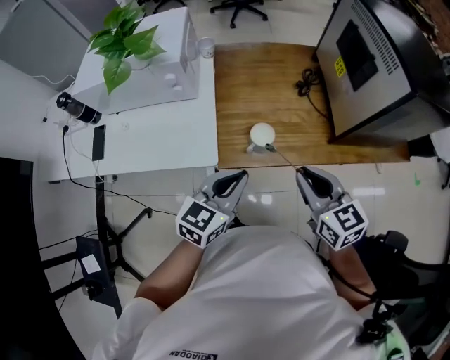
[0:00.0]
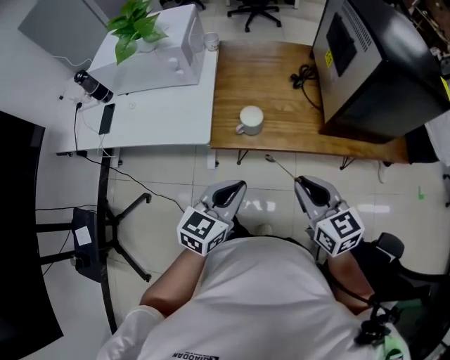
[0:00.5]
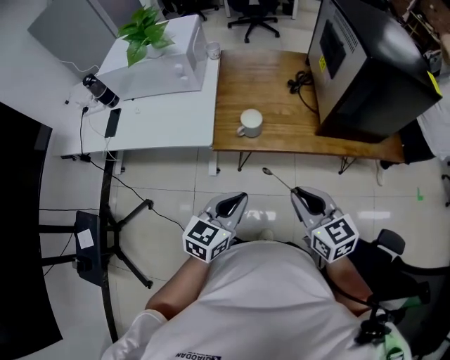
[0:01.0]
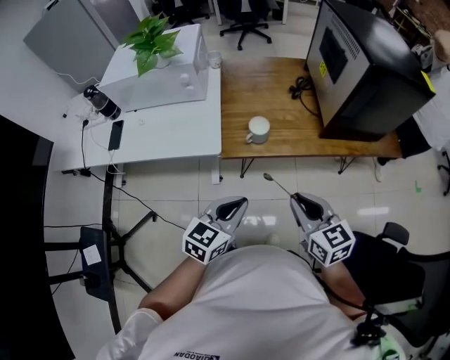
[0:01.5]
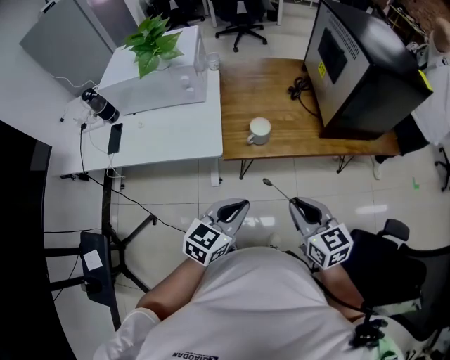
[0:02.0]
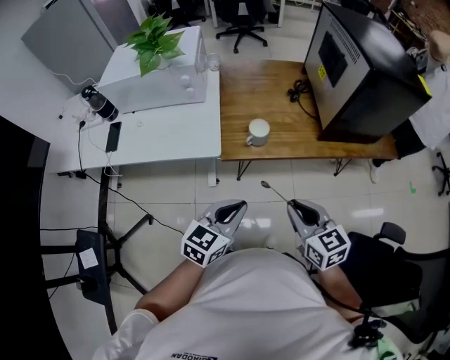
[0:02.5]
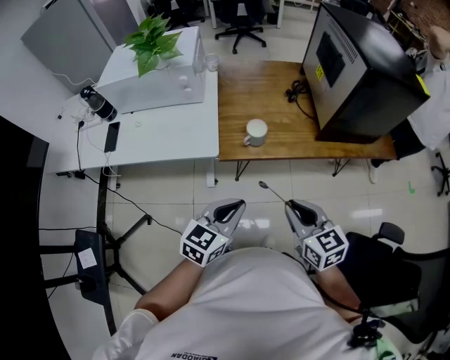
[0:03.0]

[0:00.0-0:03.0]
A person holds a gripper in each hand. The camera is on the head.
0:00.0 to 0:01.5: Both grippers travel together backward, about 15 cm.
0:01.5 to 0:03.0: The grippers move only a little.

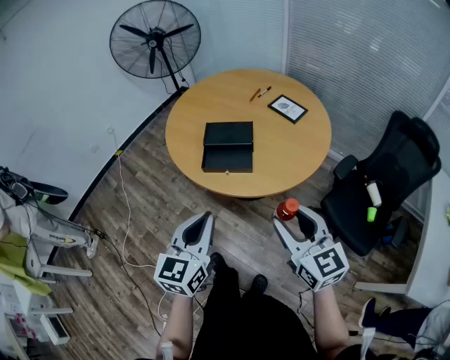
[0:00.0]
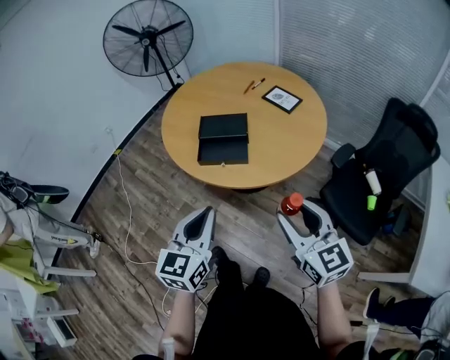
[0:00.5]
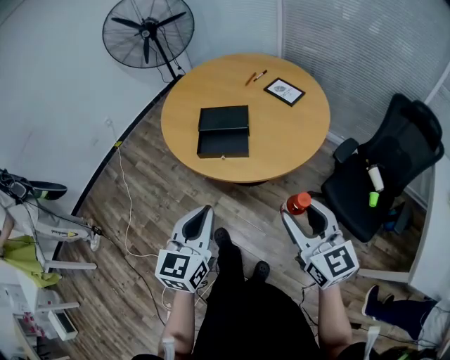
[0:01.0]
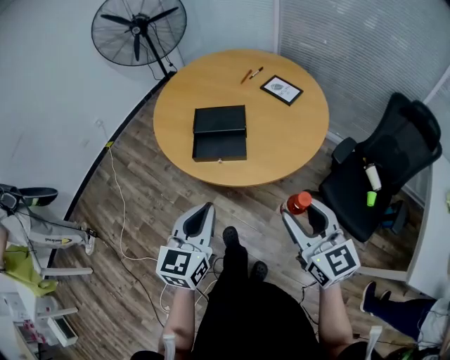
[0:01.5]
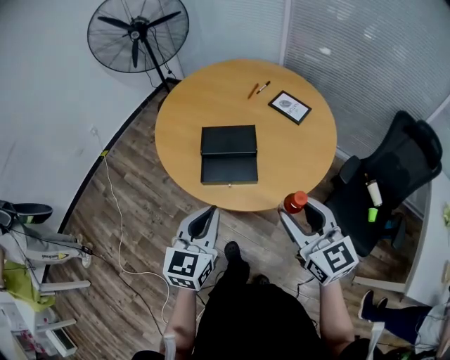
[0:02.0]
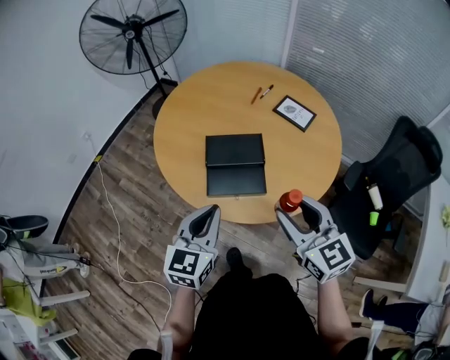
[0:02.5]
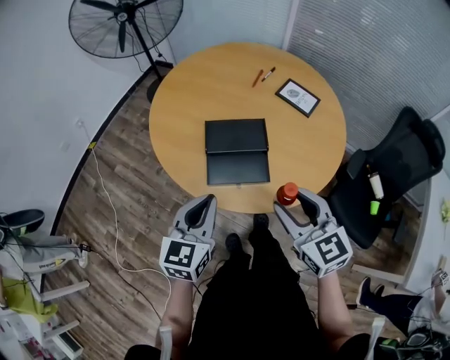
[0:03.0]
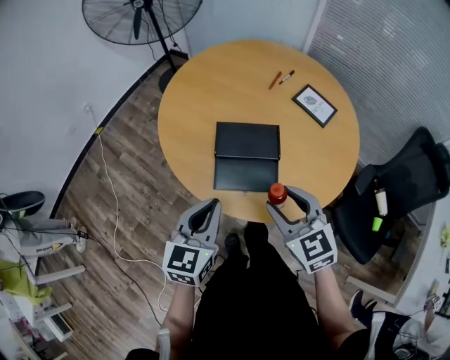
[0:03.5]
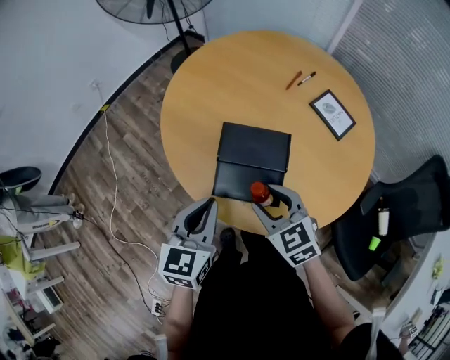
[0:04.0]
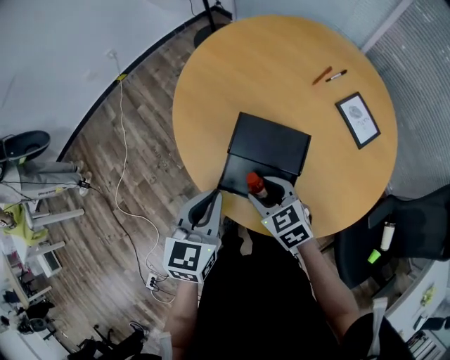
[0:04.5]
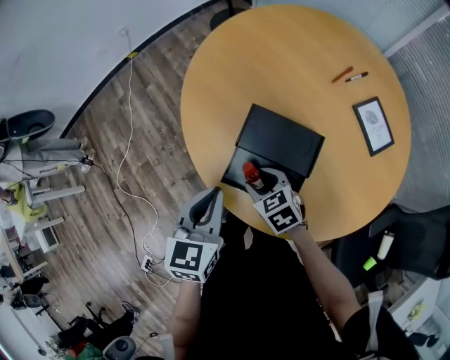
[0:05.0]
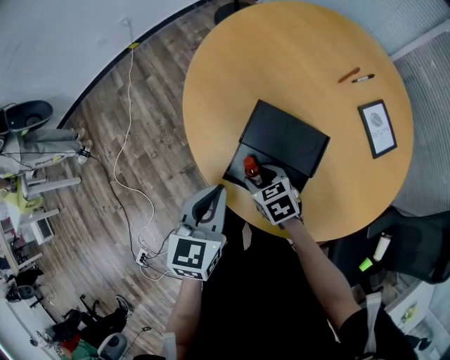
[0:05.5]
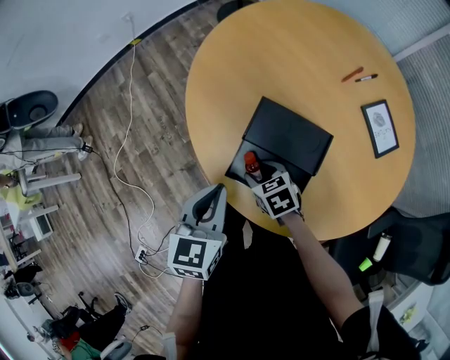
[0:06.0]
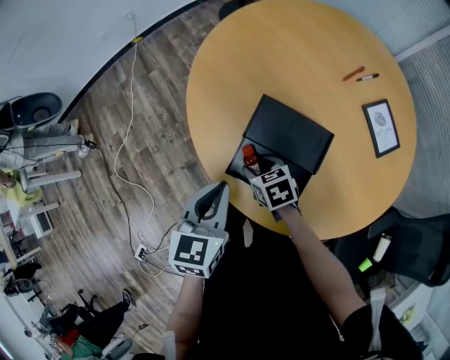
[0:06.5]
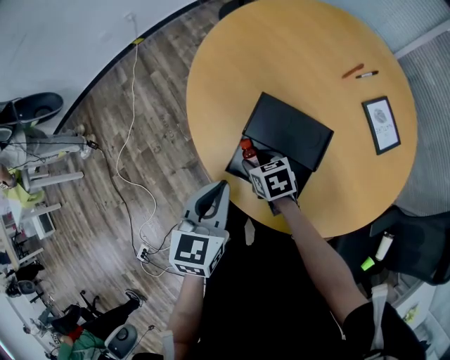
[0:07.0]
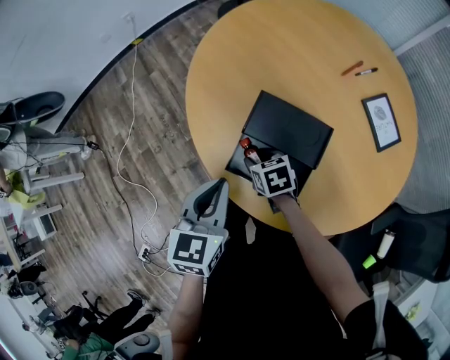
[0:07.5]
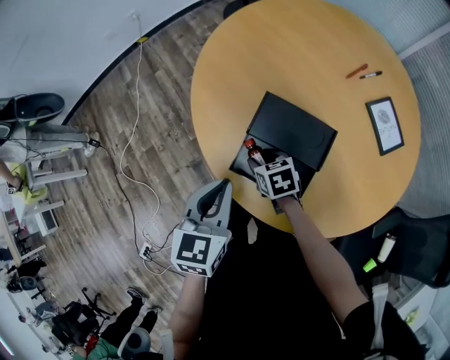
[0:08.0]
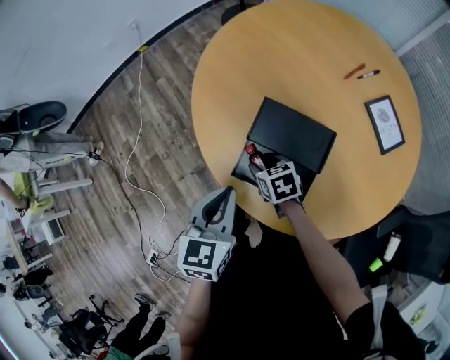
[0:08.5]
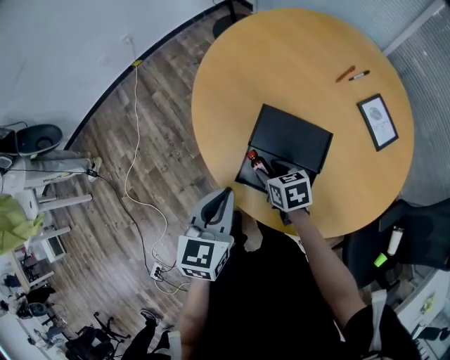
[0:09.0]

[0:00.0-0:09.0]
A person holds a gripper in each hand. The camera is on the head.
0:00.0 to 0:02.0: The two grippers go about 15 cm forward.
0:02.0 to 0:04.5: The right gripper moves roughly 35 cm, and points its fingers roughly 30 degrees further downward. The left gripper ends up about 20 cm from where it was, and rotates roughly 20 degrees.
0:04.5 to 0:07.0: The right gripper is displaced downward and forward by about 10 cm, and swivels about 20 degrees.
0:07.0 to 0:09.0: The grippers make only small movements.

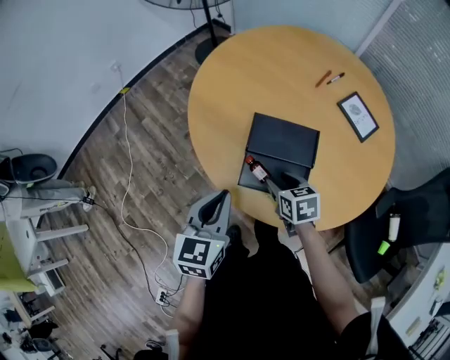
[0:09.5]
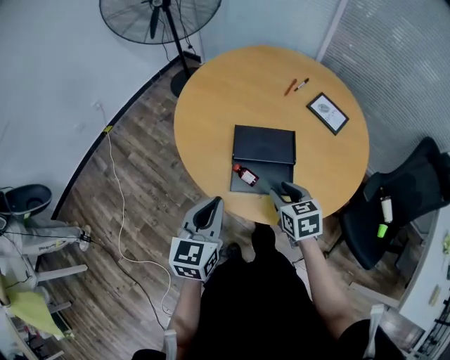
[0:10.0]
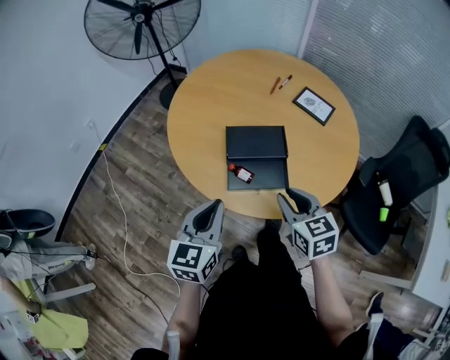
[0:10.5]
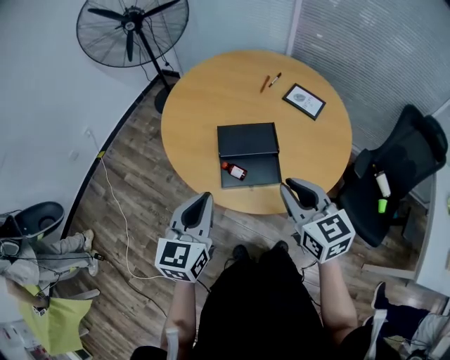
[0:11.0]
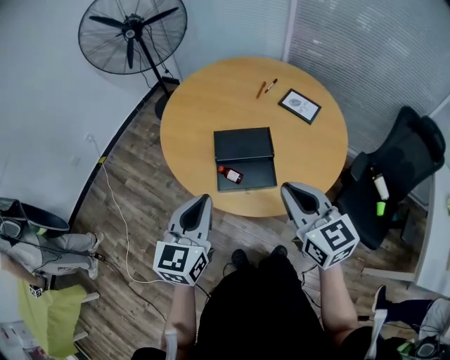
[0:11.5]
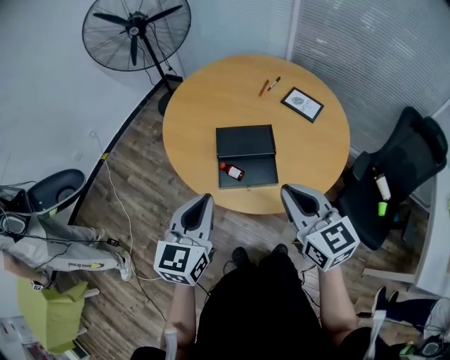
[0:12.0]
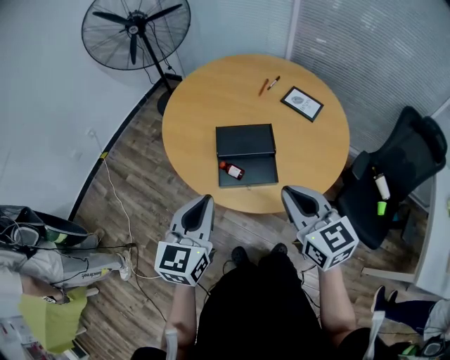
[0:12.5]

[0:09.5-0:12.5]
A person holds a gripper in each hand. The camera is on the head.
0:09.5 to 0:11.0: The right gripper is displaced upward and backward by roughly 25 cm, swivels approximately 30 degrees, and closes. Meanwhile the left gripper travels upward and backward by about 10 cm.
0:11.0 to 0:12.5: The grippers stay close to where they were, moving slightly.

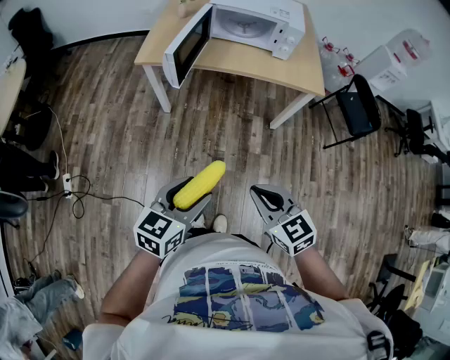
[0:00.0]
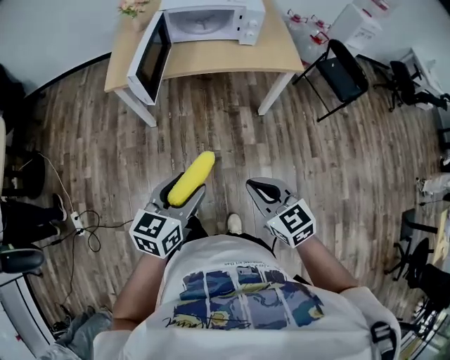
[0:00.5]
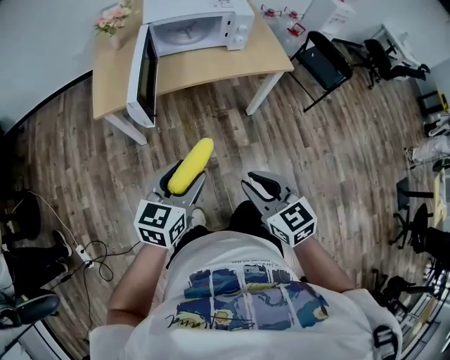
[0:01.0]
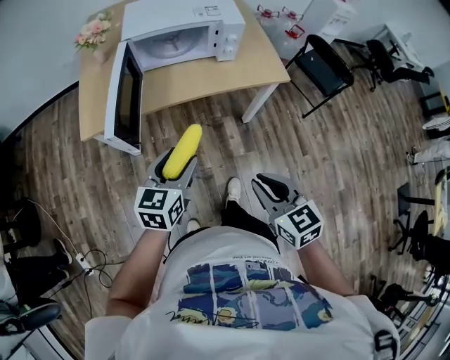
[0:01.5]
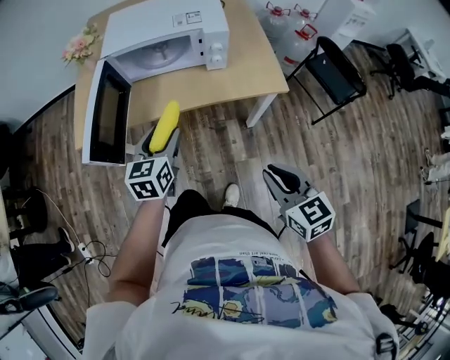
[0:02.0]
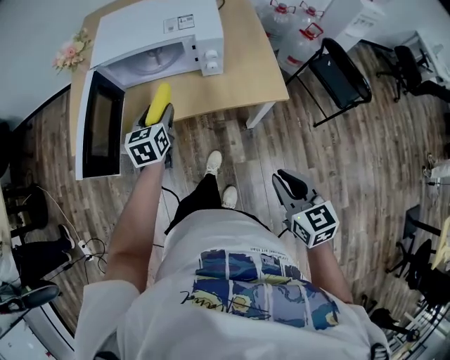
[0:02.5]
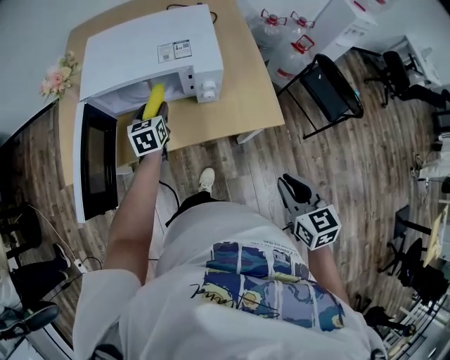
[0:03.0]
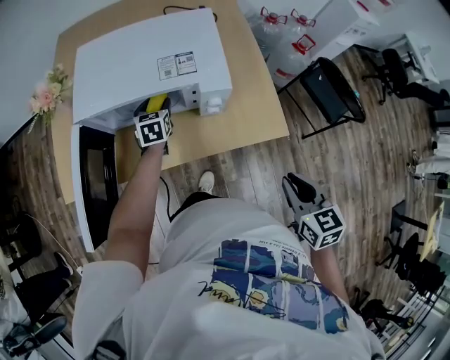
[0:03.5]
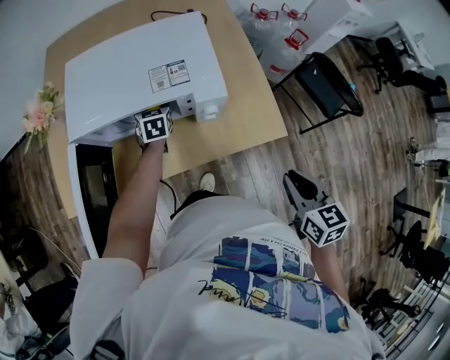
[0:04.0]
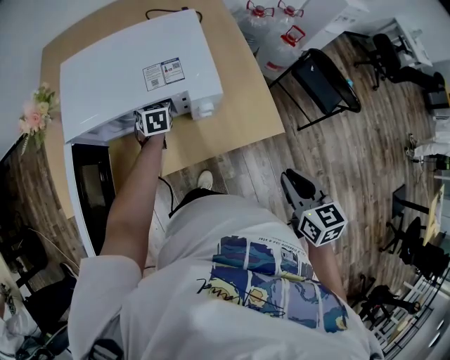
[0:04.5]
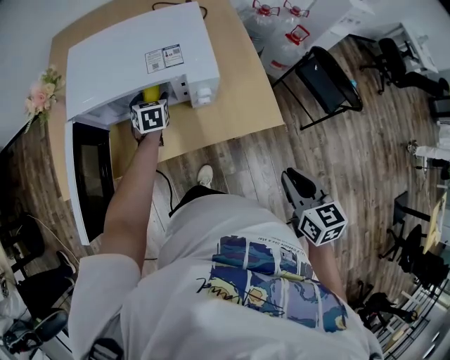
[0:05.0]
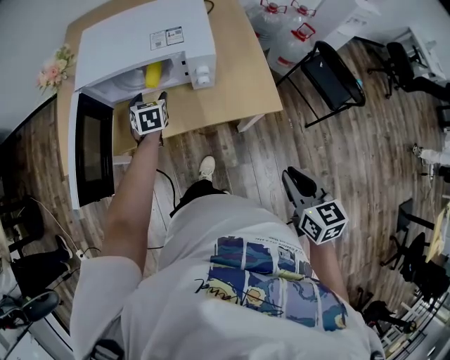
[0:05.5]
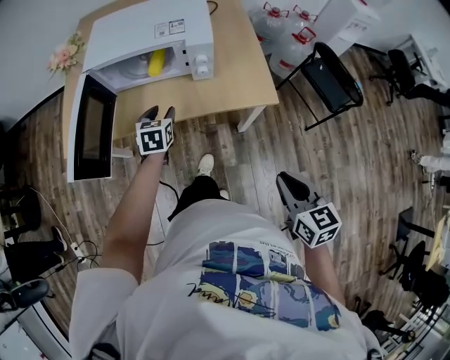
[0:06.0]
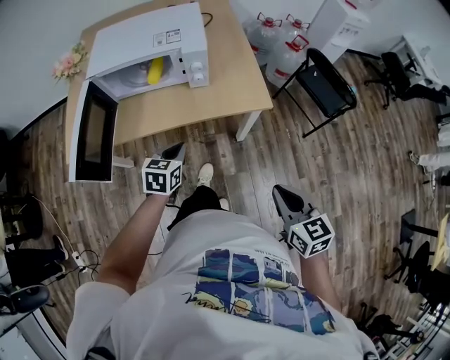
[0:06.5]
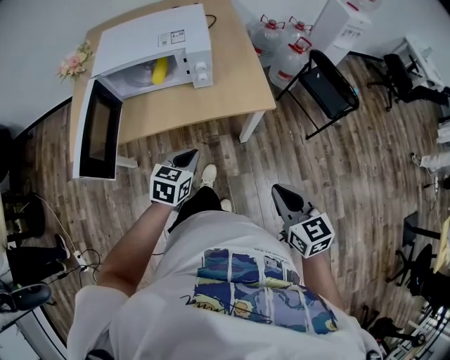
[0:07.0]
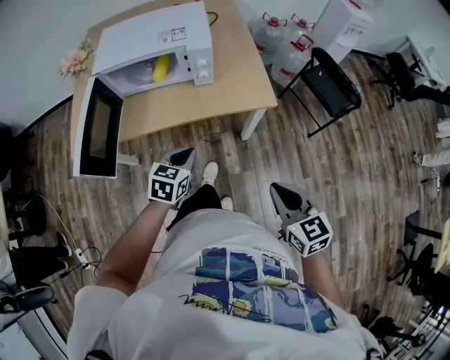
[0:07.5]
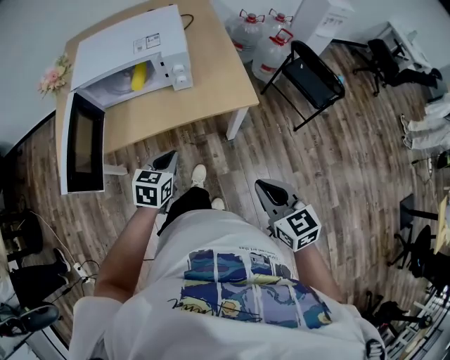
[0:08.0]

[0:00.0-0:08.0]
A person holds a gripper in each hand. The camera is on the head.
0:00.0 to 0:02.0: The left gripper heads forward, covering about 40 cm. The right gripper travels forward and to the right by about 30 cm, and changes its angle by roughly 20 degrees.
0:02.0 to 0:04.0: The left gripper moves forward, approximately 40 cm. The right gripper moves forward and to the right, roughly 25 cm, and swivels approximately 20 degrees.
0:04.0 to 0:06.0: The two grippers go about 20 cm backward.
0:06.0 to 0:08.0: The left gripper is displaced backward and to the right by roughly 15 cm, changes its angle by approximately 20 degrees, and closes.

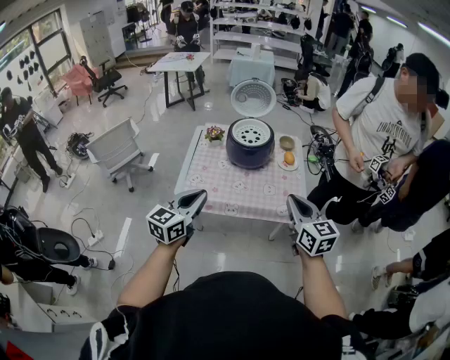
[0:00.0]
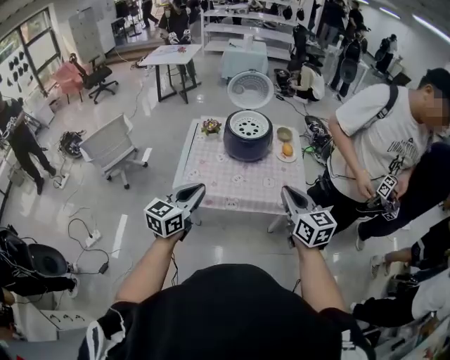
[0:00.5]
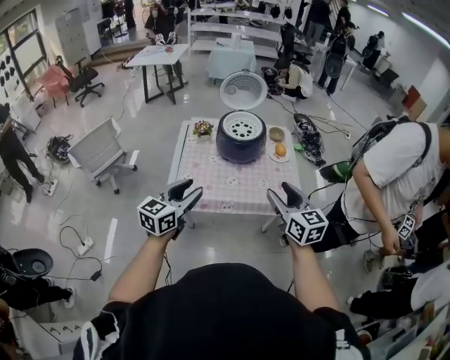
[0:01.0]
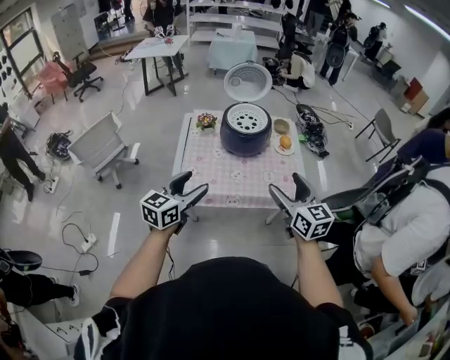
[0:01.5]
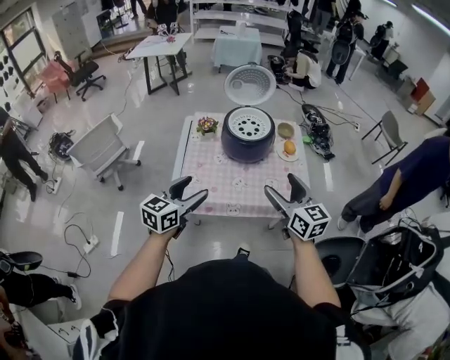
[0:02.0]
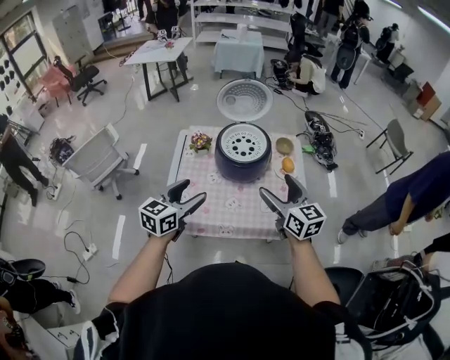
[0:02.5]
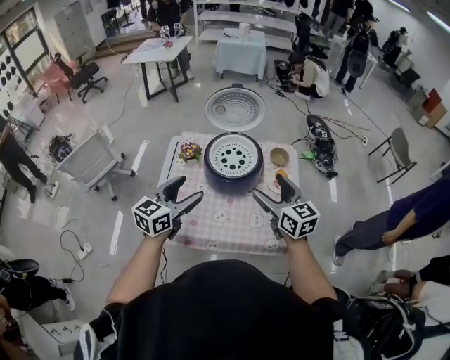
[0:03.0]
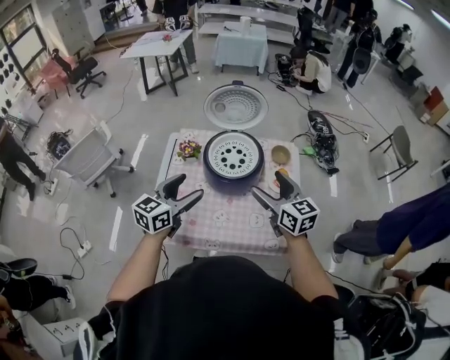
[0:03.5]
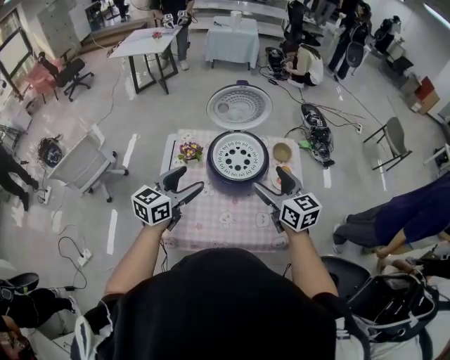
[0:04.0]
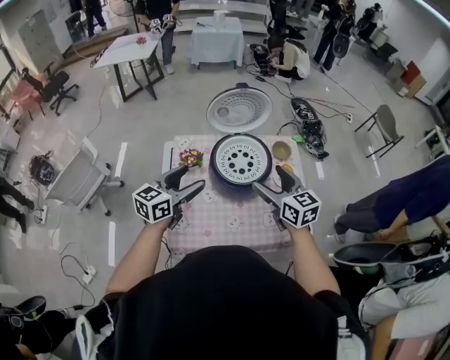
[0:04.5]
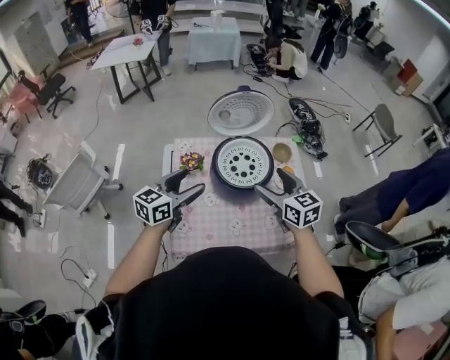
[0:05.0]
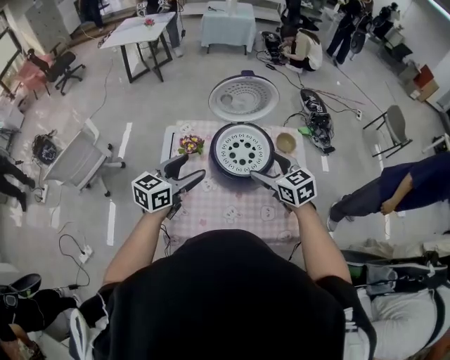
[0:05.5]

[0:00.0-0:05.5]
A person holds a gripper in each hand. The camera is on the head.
0:00.0 to 0:02.0: The left gripper goes roughly 15 cm forward, to the left and downward, and opens its fingers. The right gripper moves to the left and forward, roughly 15 cm, and opens its fingers.
0:02.0 to 0:03.5: The grippers both shift forward by approximately 25 cm.
0:03.5 to 0:05.5: The right gripper is displaced forward, to the left and downward by approximately 10 cm, and turns by some 20 degrees. The left gripper is displaced forward and to the left by approximately 10 cm.
